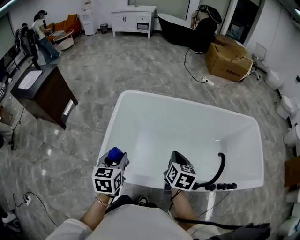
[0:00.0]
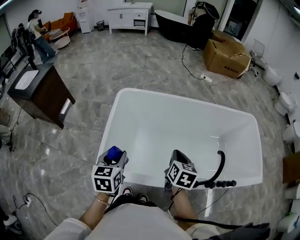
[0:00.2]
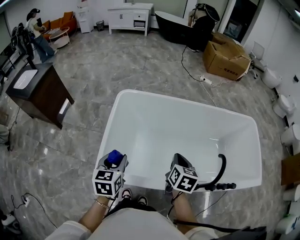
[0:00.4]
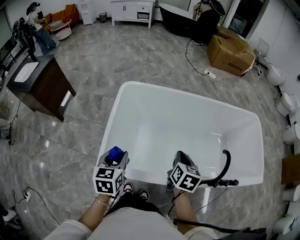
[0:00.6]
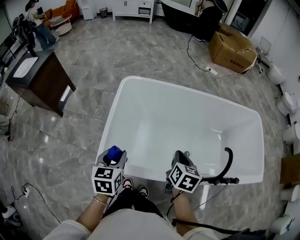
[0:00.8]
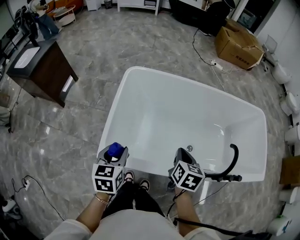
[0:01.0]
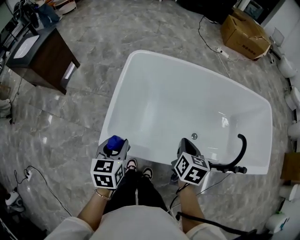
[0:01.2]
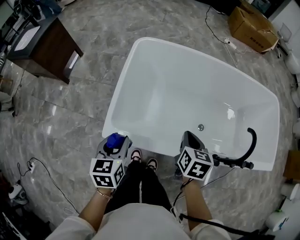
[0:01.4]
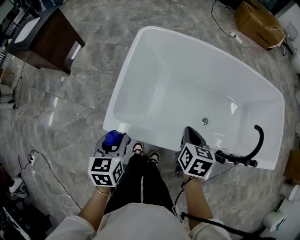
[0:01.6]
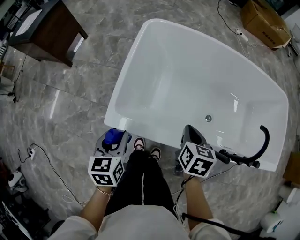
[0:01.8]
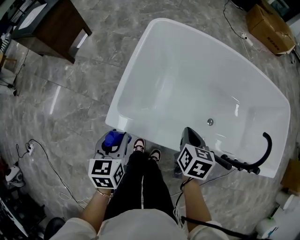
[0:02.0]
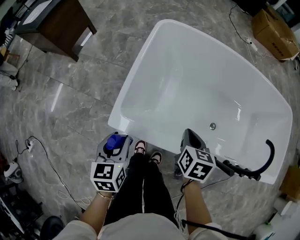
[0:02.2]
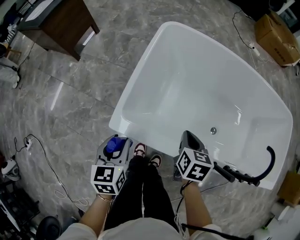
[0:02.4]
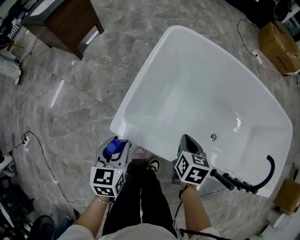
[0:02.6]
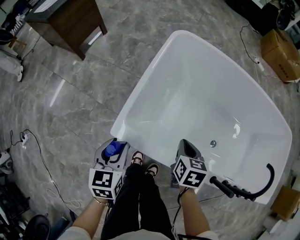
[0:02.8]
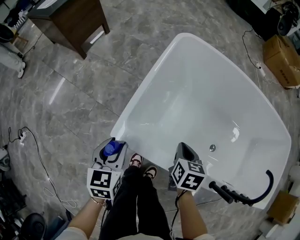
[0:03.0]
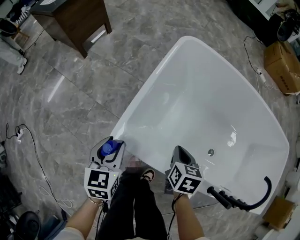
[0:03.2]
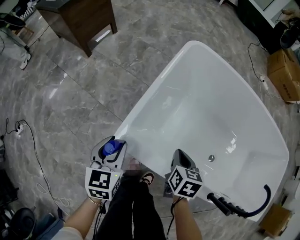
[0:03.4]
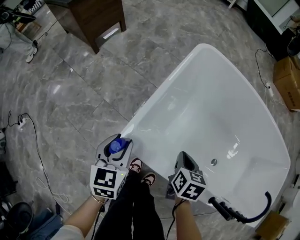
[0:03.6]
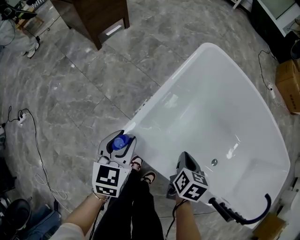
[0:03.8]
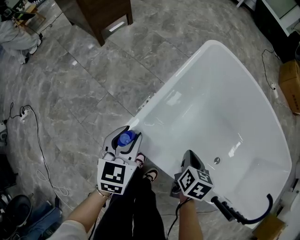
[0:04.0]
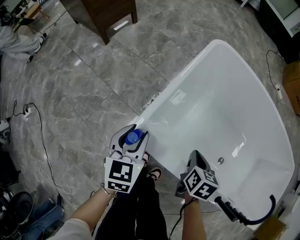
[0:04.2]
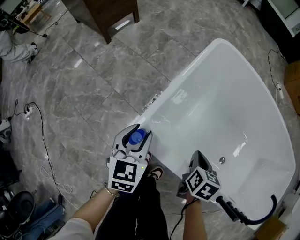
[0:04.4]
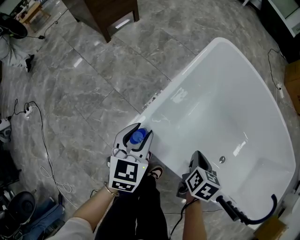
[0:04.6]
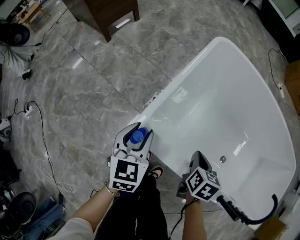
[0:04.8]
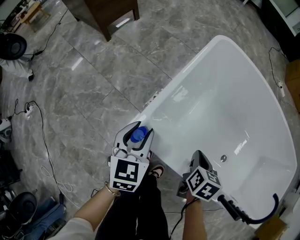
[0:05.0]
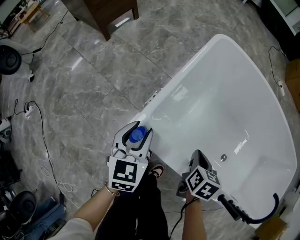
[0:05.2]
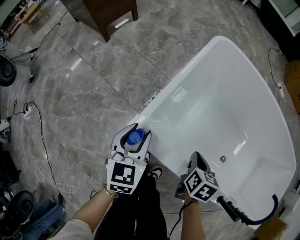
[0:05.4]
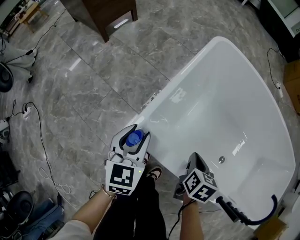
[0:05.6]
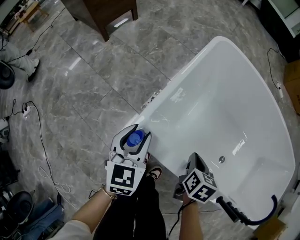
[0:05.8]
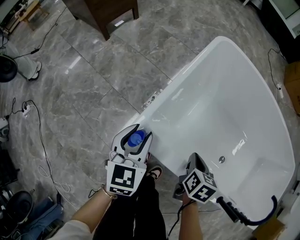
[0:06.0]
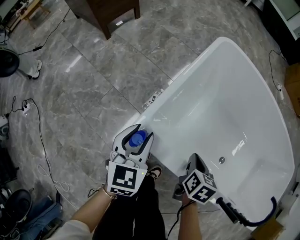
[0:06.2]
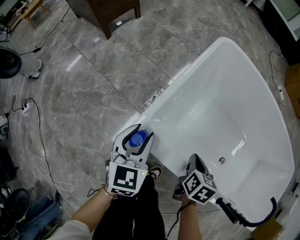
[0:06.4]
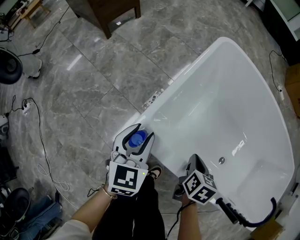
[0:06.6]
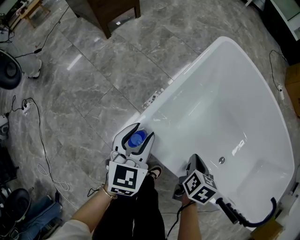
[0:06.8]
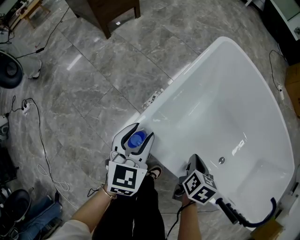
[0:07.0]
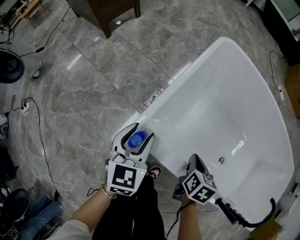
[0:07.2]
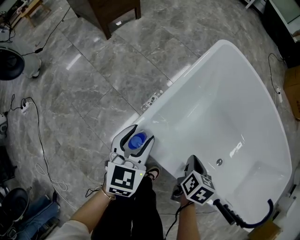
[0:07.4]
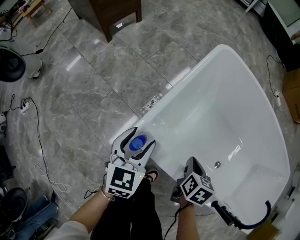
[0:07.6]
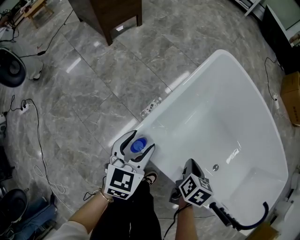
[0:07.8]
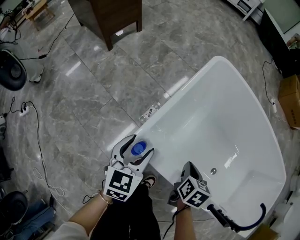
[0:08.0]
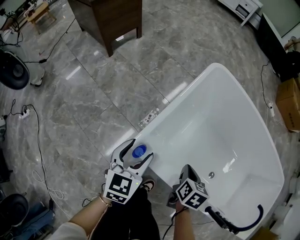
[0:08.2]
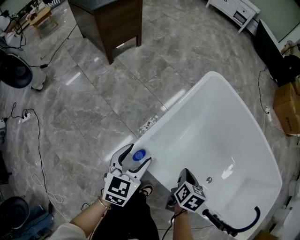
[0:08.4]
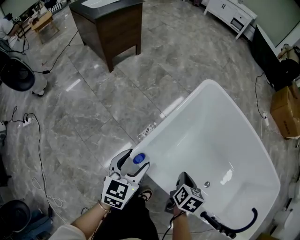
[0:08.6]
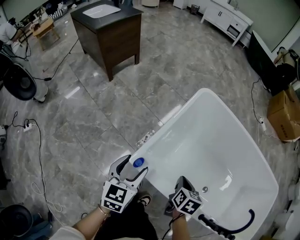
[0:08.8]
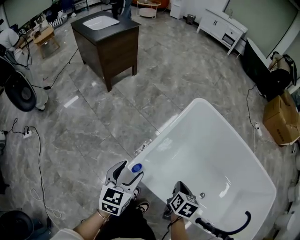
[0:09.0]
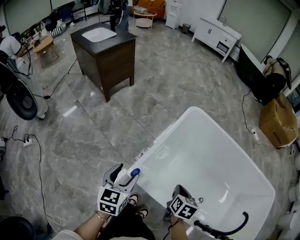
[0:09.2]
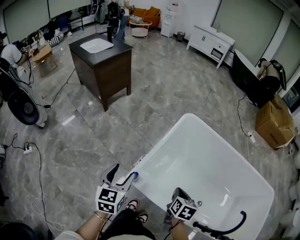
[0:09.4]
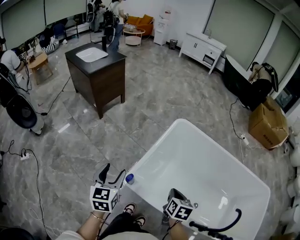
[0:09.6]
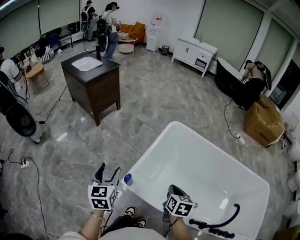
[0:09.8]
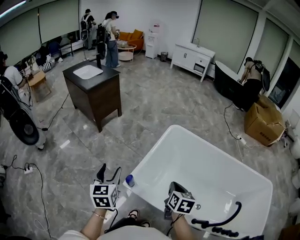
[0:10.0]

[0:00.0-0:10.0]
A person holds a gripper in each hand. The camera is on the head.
0:00.0 to 0:01.4: The left gripper moves backward, downward and to the left, about 15 cm. Meanwhile the right gripper moves downward and backward, roughly 10 cm.
0:01.4 to 0:02.8: The grippers both shift downward and to the left by approximately 10 cm.
0:02.8 to 0:04.2: The left gripper changes place by some 5 cm.
0:04.2 to 0:05.8: The grippers stay close to where they were, moving slightly.
0:05.8 to 0:07.2: The two grippers keep their place.
0:07.2 to 0:08.6: Both grippers move upward, about 5 cm.
0:08.6 to 0:10.0: The grippers both shift upward by some 15 cm. The left gripper swivels some 20 degrees.

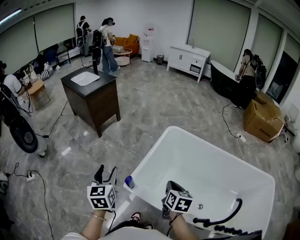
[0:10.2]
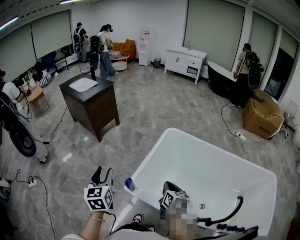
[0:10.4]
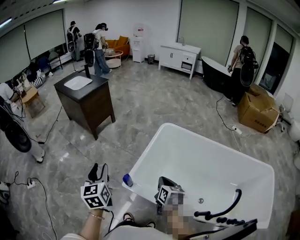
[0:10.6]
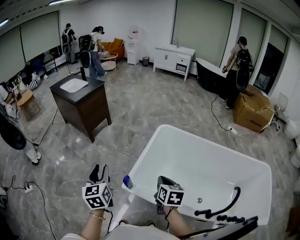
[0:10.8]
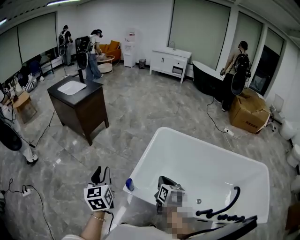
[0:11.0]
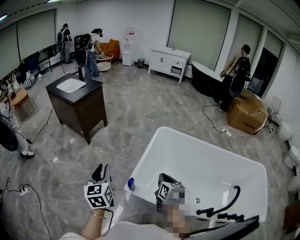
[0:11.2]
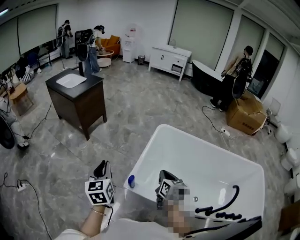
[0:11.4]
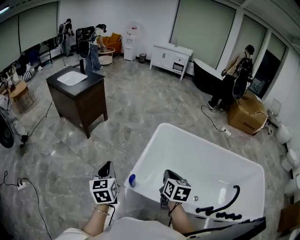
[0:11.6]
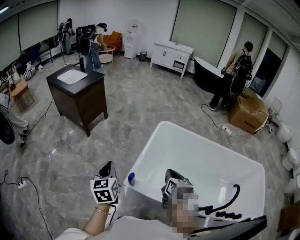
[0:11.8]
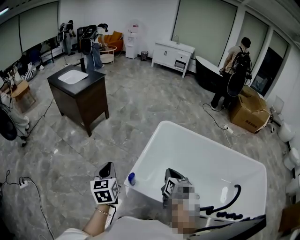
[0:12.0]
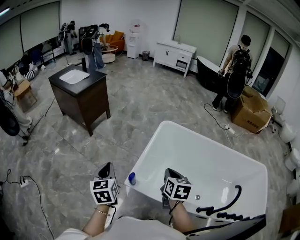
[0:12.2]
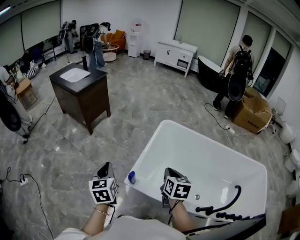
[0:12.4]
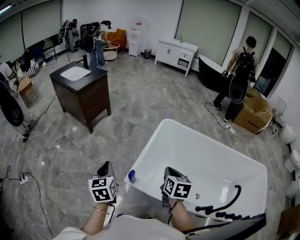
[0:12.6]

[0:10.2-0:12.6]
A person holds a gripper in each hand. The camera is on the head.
0:10.2 to 0:11.4: The right gripper shifts roughly 5 cm to the left; the left gripper closes up.
0:11.4 to 0:12.6: The grippers move only a little.

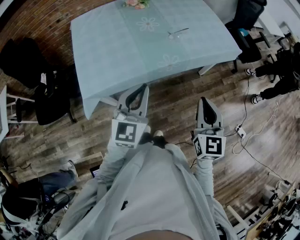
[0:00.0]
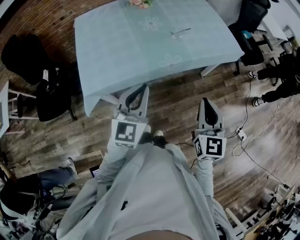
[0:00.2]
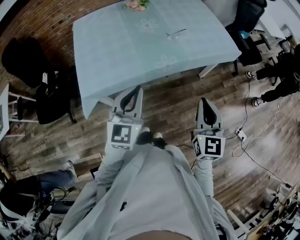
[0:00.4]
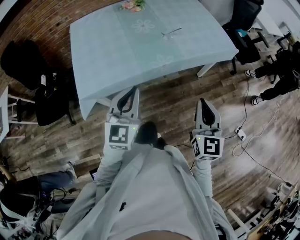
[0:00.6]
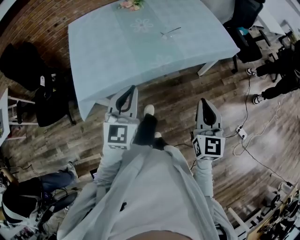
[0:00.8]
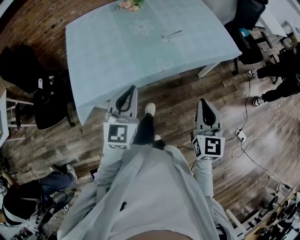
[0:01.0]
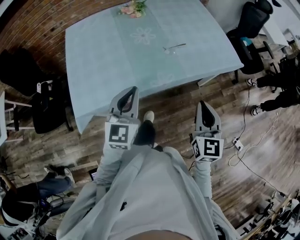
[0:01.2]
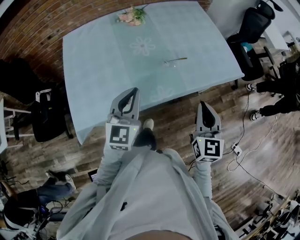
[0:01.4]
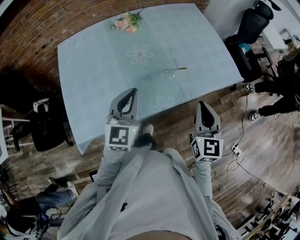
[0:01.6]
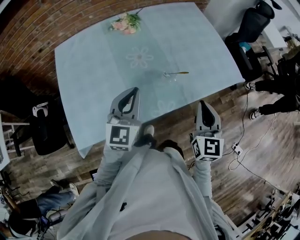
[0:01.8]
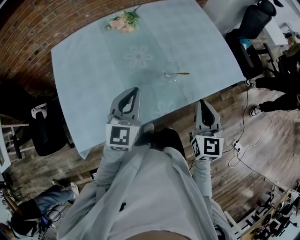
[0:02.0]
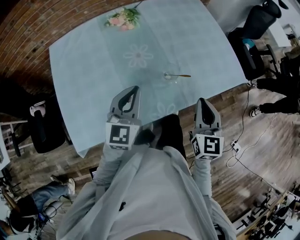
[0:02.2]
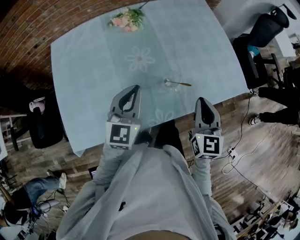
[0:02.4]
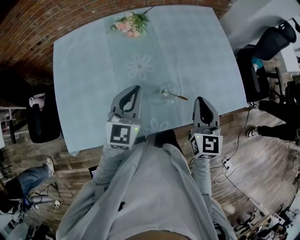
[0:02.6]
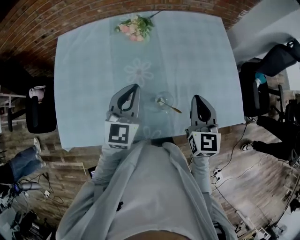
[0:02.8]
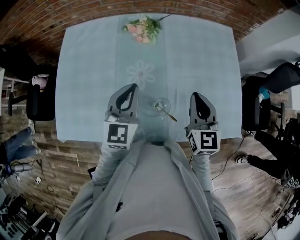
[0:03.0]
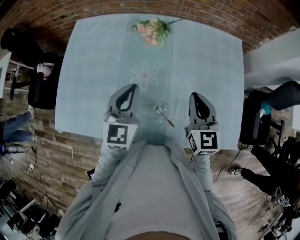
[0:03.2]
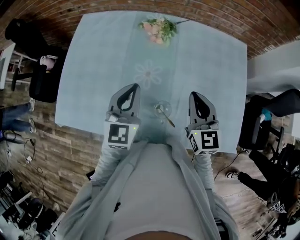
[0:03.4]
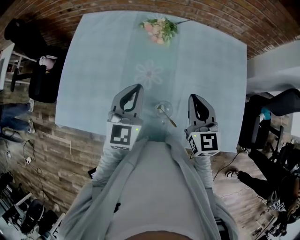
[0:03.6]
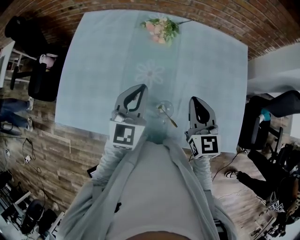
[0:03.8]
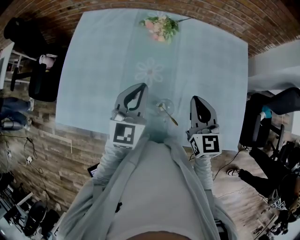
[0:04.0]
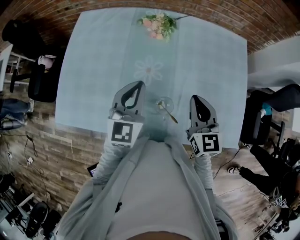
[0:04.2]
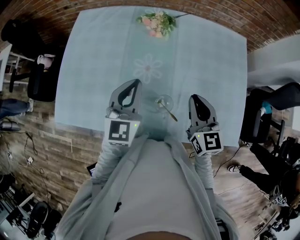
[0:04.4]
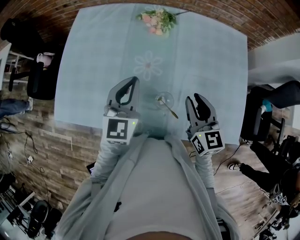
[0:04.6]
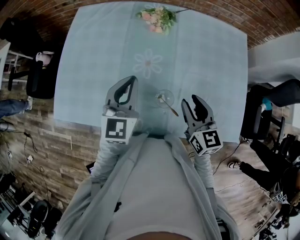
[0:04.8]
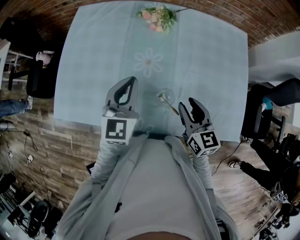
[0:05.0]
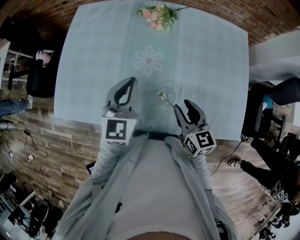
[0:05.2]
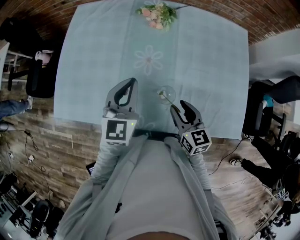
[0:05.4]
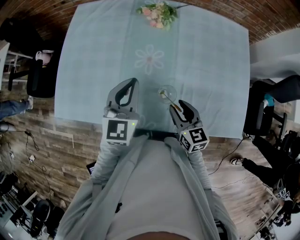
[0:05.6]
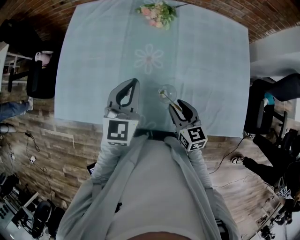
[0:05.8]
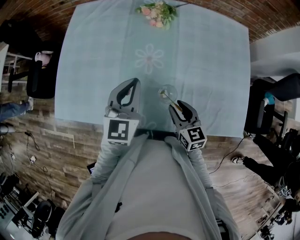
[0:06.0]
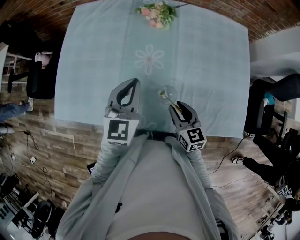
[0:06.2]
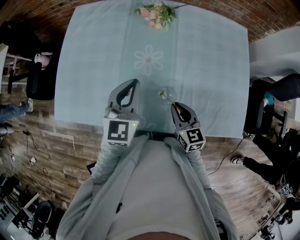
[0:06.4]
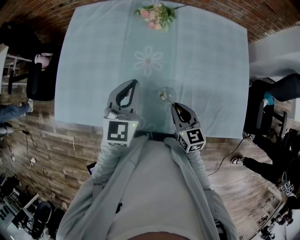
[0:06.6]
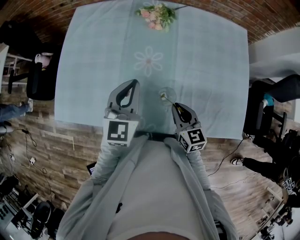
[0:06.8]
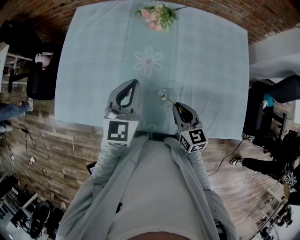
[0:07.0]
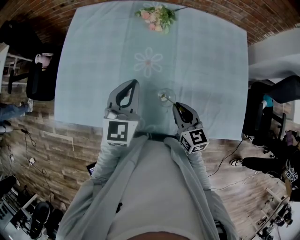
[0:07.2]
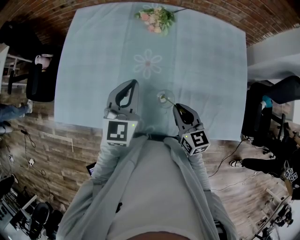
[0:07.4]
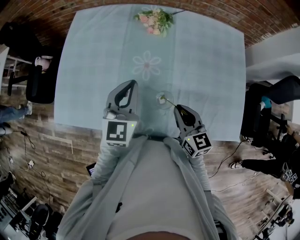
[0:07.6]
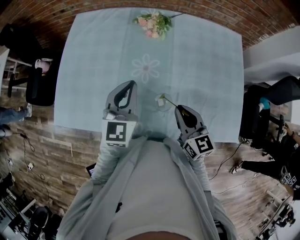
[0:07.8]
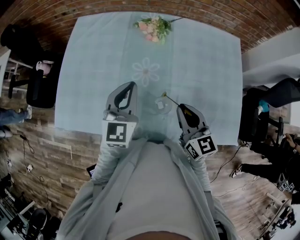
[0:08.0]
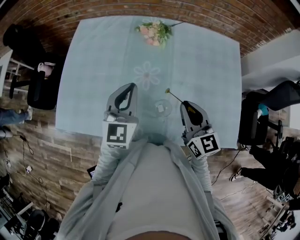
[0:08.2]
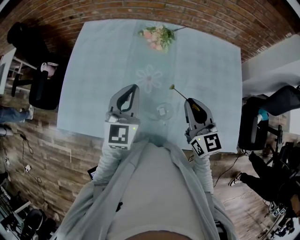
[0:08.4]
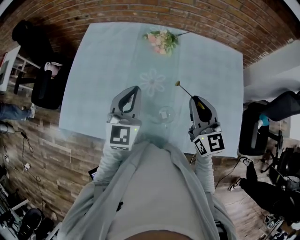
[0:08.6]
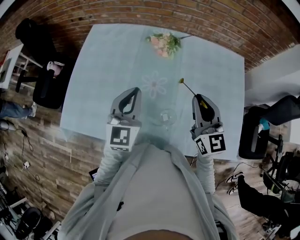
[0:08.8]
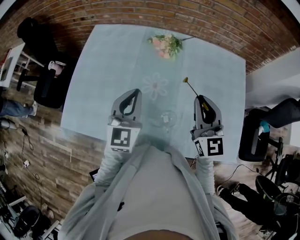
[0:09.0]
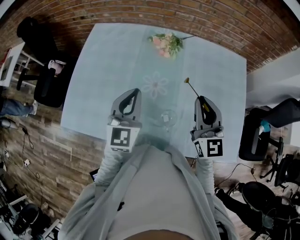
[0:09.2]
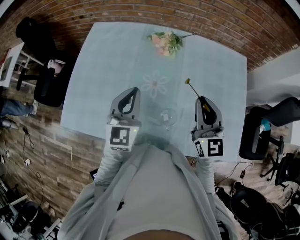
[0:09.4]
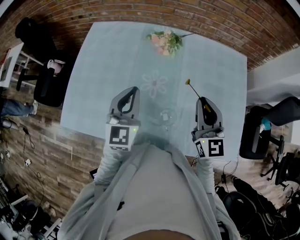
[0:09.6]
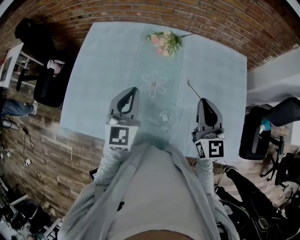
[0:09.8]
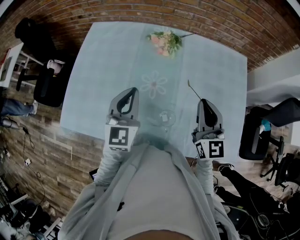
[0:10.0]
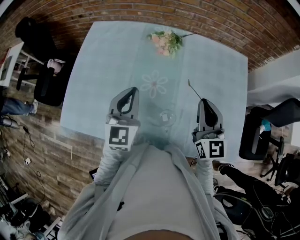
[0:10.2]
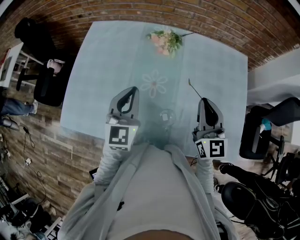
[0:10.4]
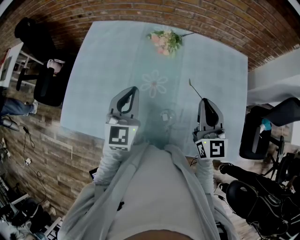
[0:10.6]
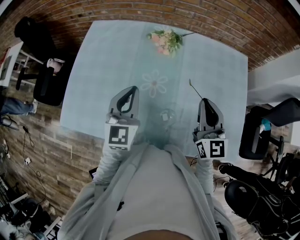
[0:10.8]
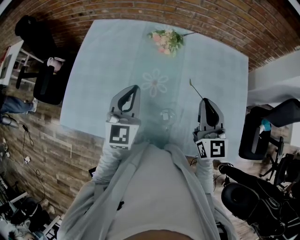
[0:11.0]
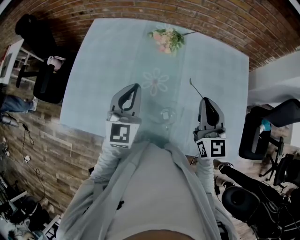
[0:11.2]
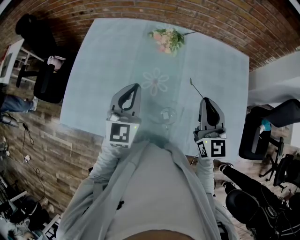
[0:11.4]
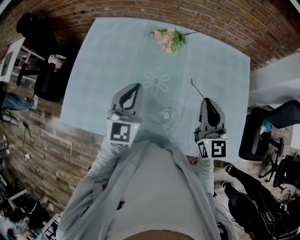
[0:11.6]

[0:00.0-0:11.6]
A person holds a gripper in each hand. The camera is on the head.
0:00.0 to 0:01.4: Both grippers move forward, some 20 cm.
0:01.4 to 0:02.8: The grippers both shift forward by some 25 cm.
0:02.8 to 0:04.4: The right gripper changes its angle by approximately 20 degrees.
0:04.4 to 0:05.8: The right gripper shifts roughly 15 cm downward, backward and to the left, and opens up.
0:05.8 to 0:07.2: The right gripper closes up.
0:07.2 to 0:08.8: The left gripper changes place by approximately 5 cm; the right gripper moves upward and forward, about 20 cm, and changes its angle by some 30 degrees.
0:08.8 to 0:10.2: The grippers stay close to where they were, moving slightly.
0:10.2 to 0:11.6: Both grippers stay about where they are.
